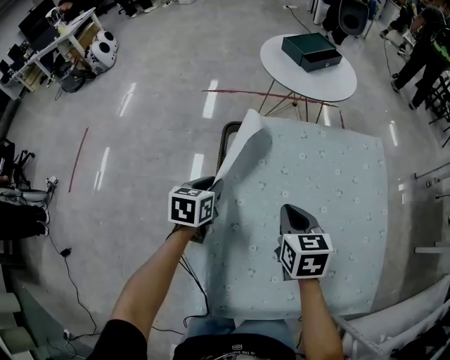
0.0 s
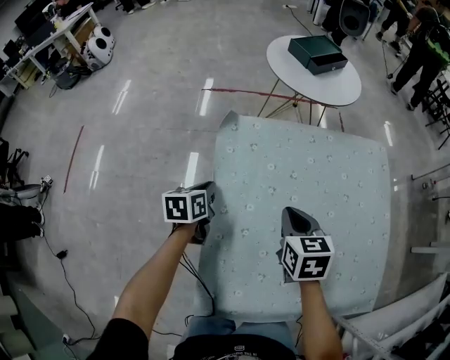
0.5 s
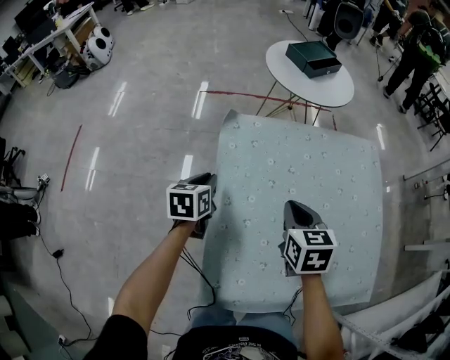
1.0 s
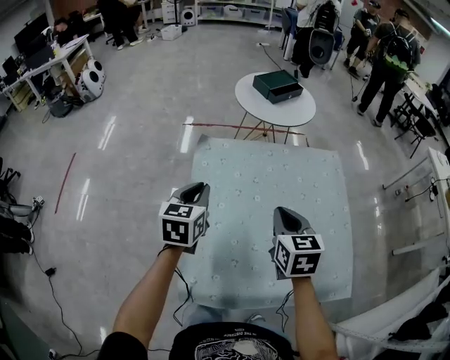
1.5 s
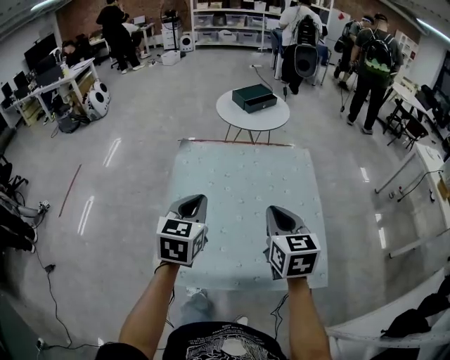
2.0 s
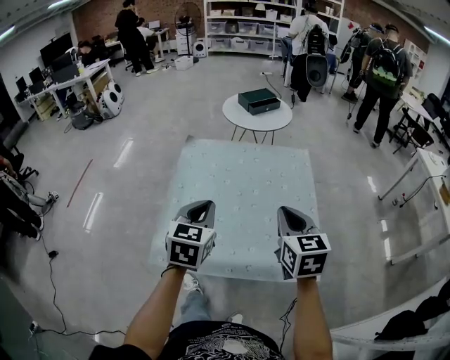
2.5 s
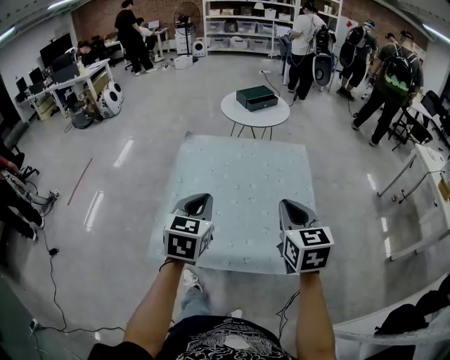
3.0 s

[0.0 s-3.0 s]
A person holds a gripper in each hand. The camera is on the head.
0.0 to 1.5 s: The right gripper travels upward and backward by some 15 cm. Meanwhile the left gripper travels upward by some 15 cm.
1.5 to 3.0 s: The right gripper goes roughly 30 cm backward, to the right and upward. The left gripper is displaced backward and to the right by approximately 30 cm.

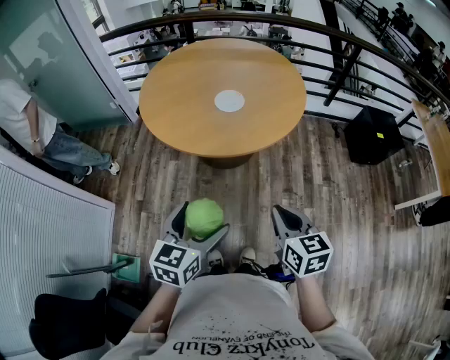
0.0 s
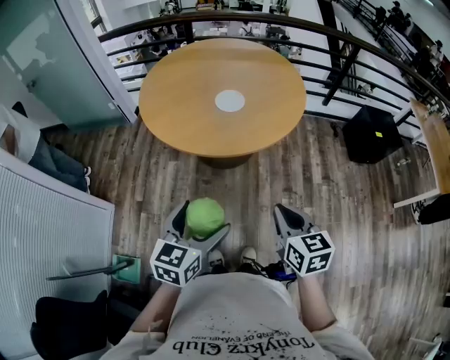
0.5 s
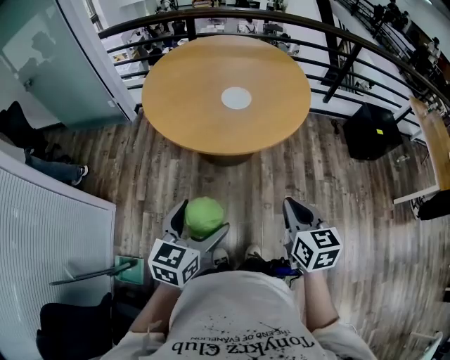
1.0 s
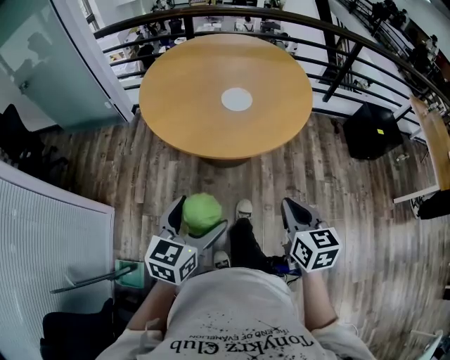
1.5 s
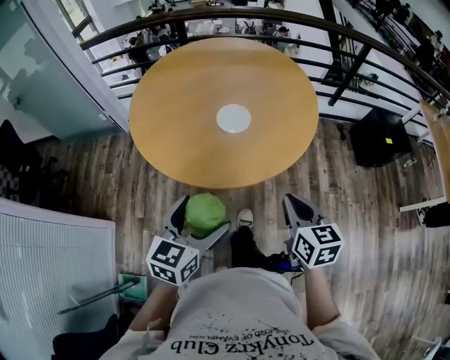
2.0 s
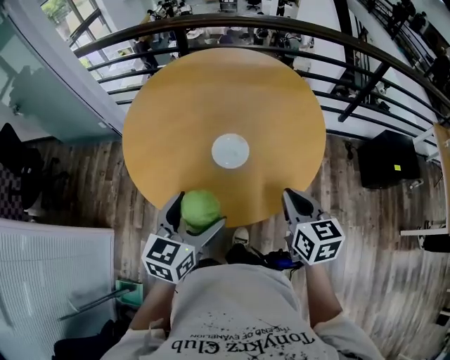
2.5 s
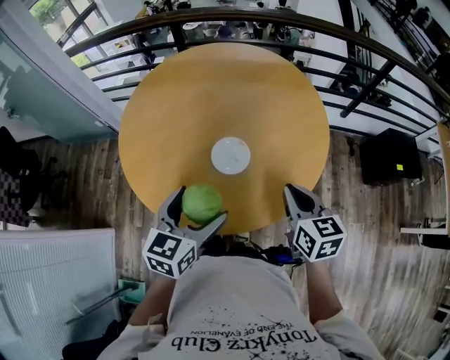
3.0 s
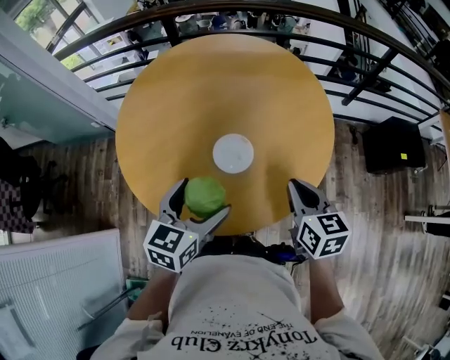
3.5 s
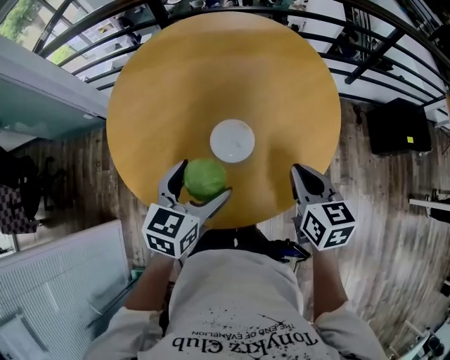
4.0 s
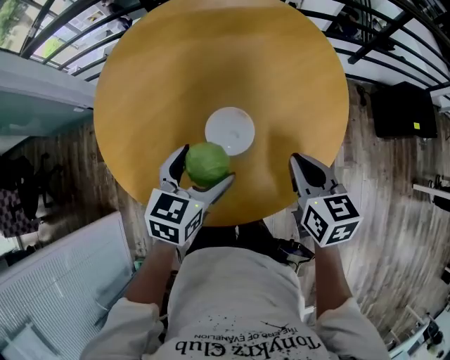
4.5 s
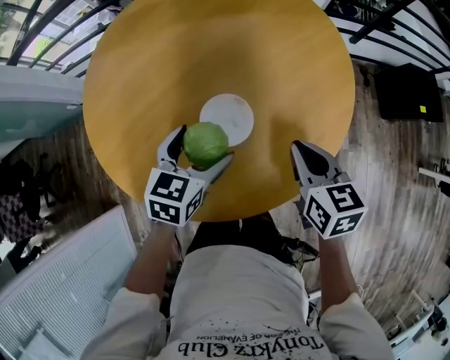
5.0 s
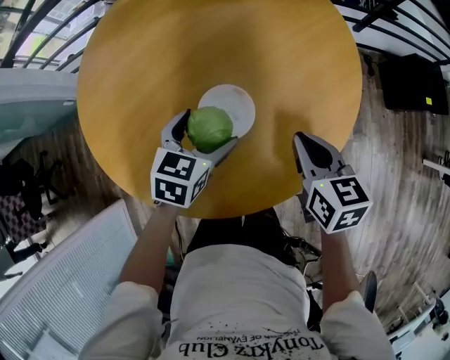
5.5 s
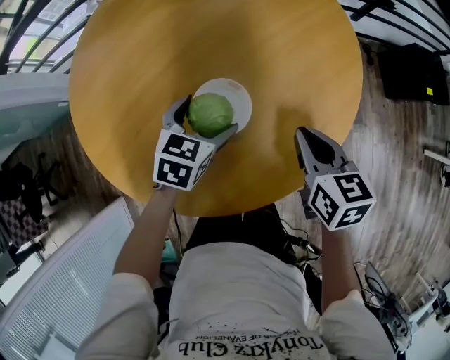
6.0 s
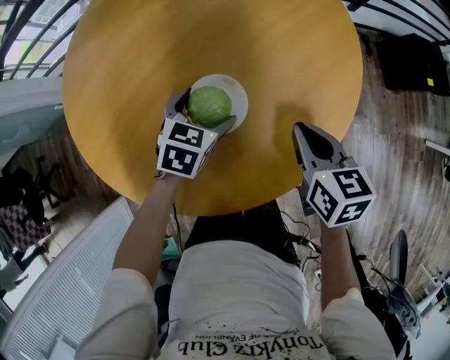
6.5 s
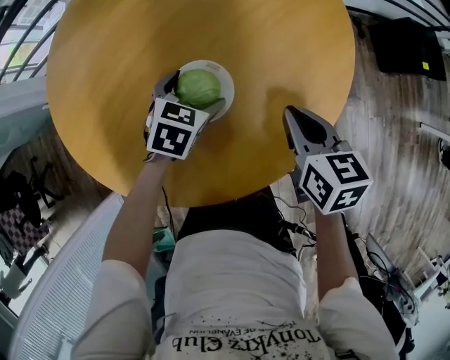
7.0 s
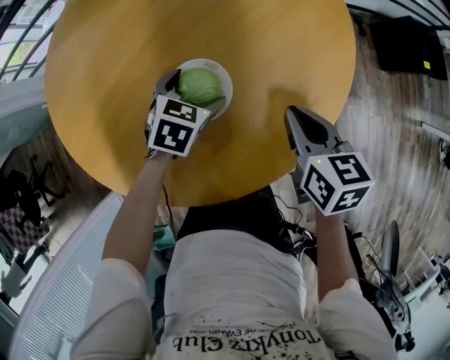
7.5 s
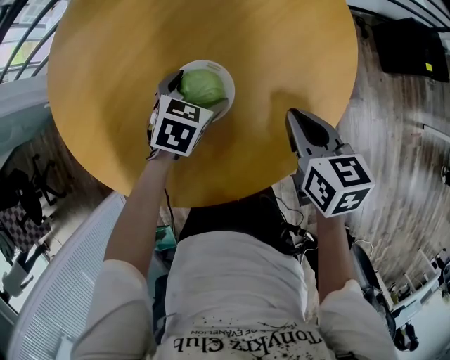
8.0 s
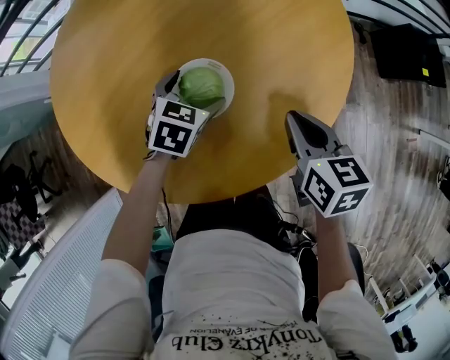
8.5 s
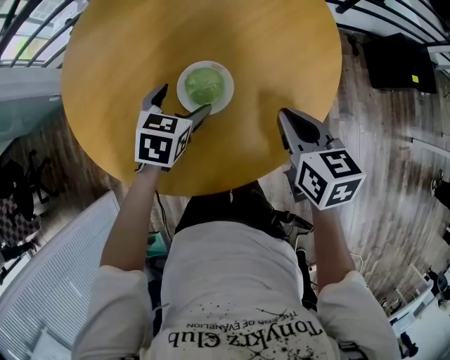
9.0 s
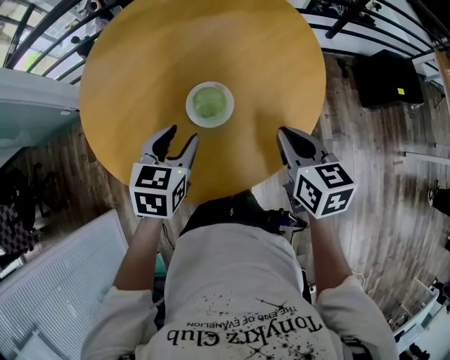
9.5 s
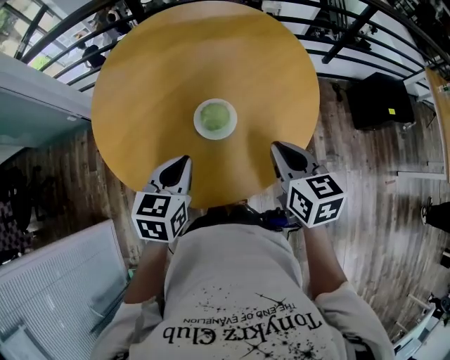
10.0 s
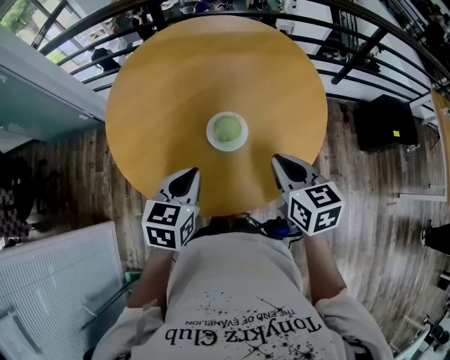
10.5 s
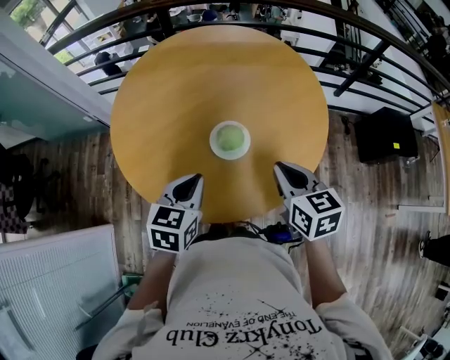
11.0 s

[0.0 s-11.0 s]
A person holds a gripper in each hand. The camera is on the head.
0.0 to 2.0 s: Both grippers travel together forward, some 15 cm.
2.0 to 3.5 s: Both grippers move forward, approximately 25 cm.
3.5 to 5.5 s: The right gripper heads downward and forward, covering roughly 15 cm, while the left gripper travels downward and forward by about 25 cm.
5.5 to 7.5 s: The left gripper goes some 10 cm downward. Meanwhile the right gripper shifts by some 5 cm.
7.5 to 9.0 s: The grippers both shift upward by roughly 5 cm.
9.0 to 11.0 s: The right gripper shifts about 15 cm upward and backward. Meanwhile the left gripper is displaced upward and backward by roughly 25 cm, swivels approximately 20 degrees, and closes its fingers.

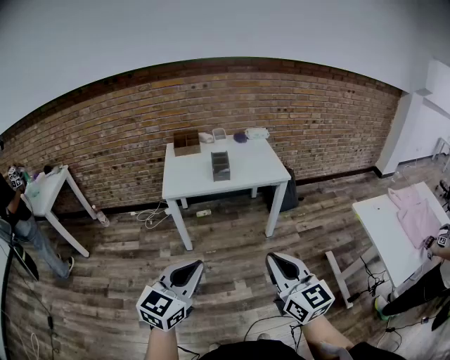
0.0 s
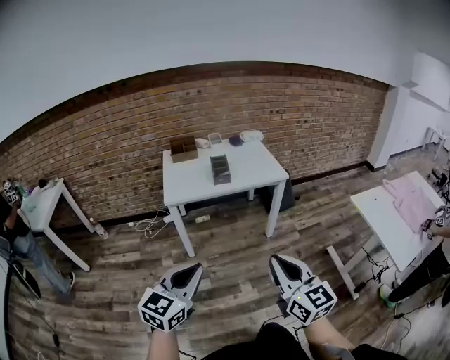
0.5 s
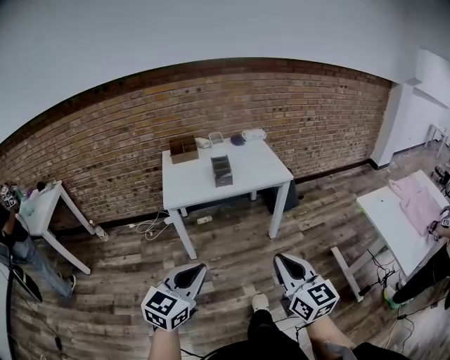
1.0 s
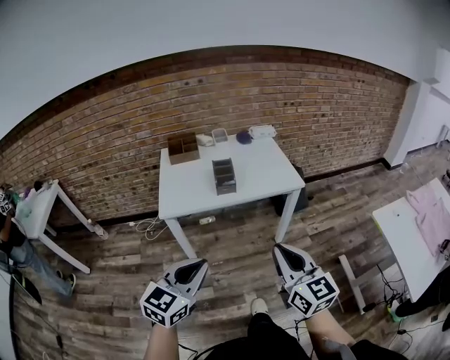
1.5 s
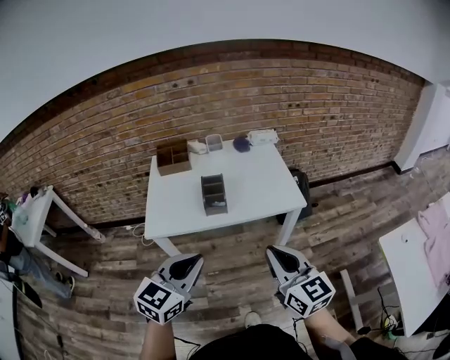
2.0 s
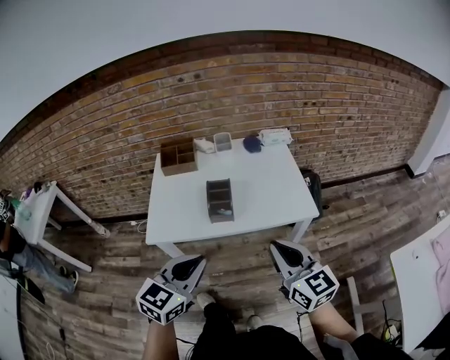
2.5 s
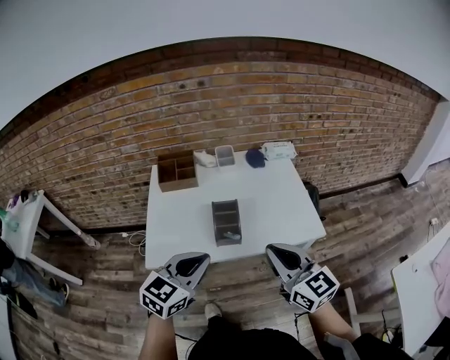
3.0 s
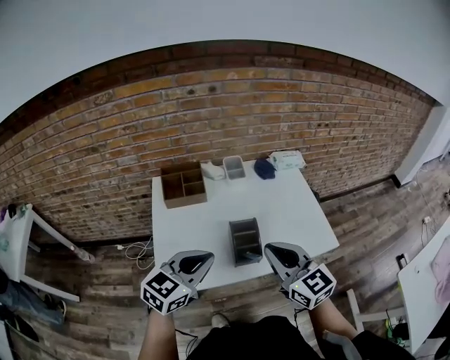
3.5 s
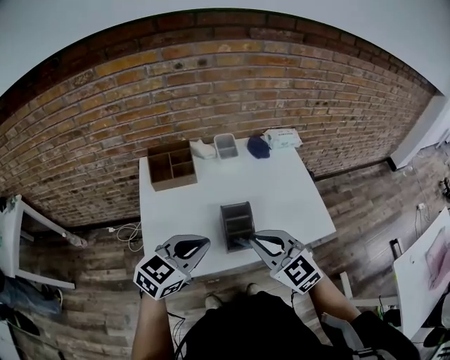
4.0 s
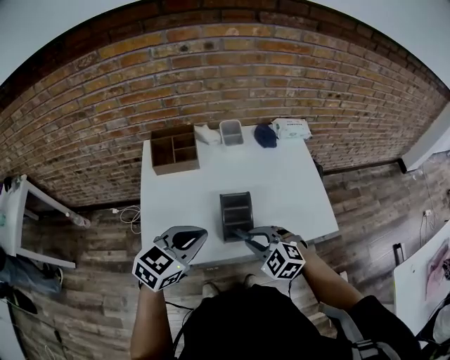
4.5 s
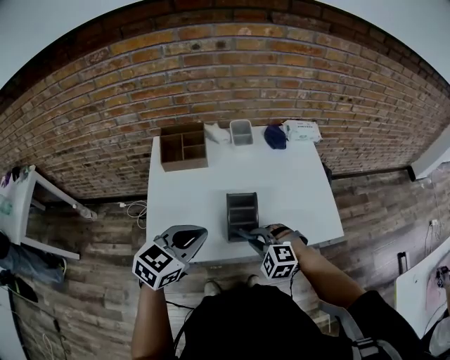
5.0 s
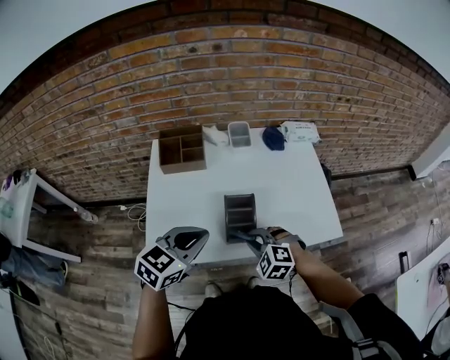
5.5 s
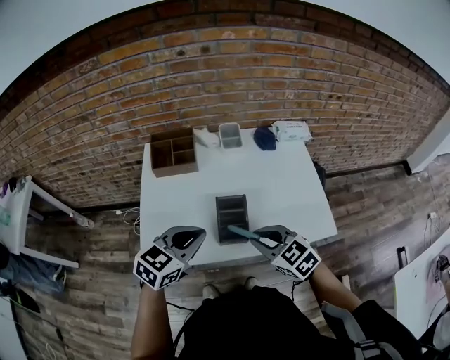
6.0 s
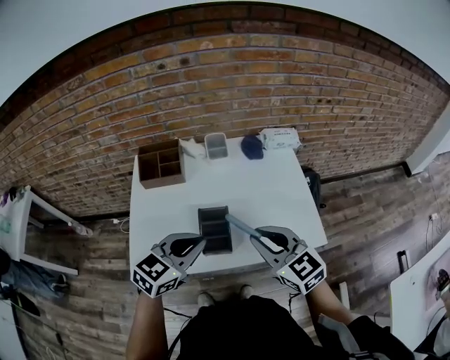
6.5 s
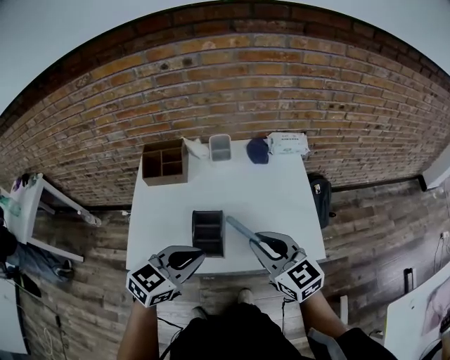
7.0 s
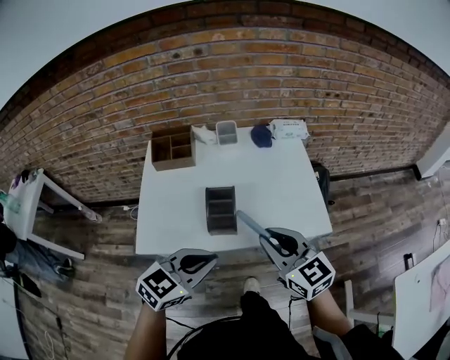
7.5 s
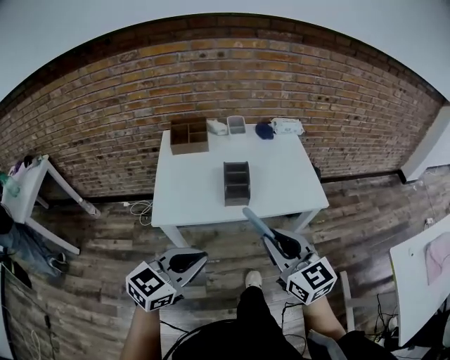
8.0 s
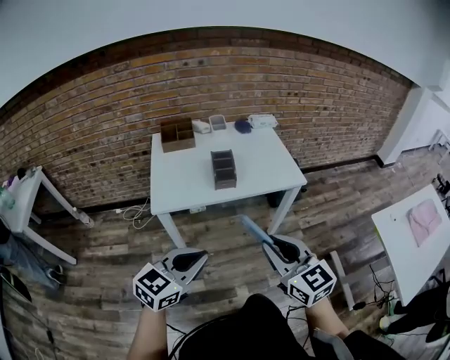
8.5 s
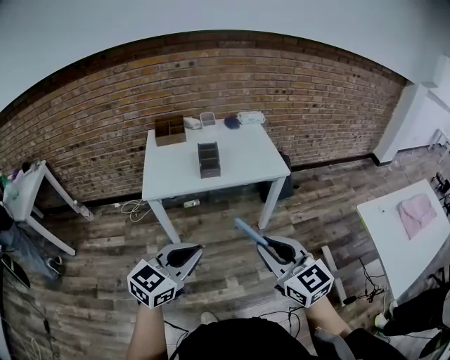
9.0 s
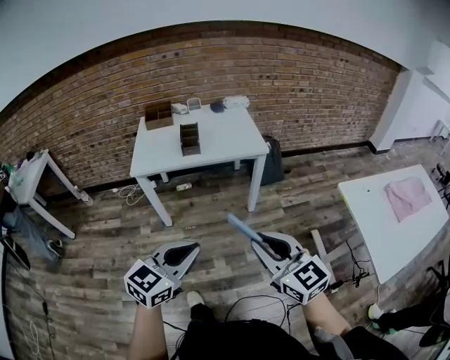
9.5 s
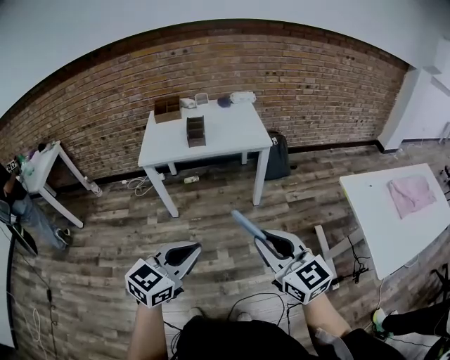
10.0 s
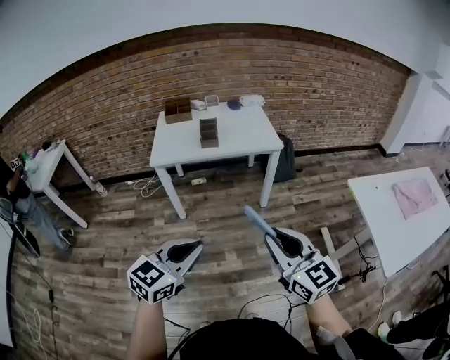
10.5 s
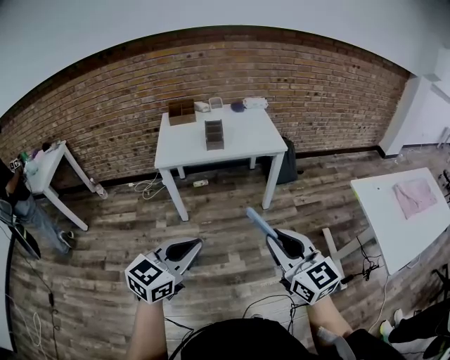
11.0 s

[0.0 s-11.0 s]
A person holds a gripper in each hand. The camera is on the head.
0.0 to 2.0 s: The two grippers go roughly 30 cm forward.
2.0 to 3.5 s: The grippers both shift forward and to the left by about 30 cm.
3.5 to 5.5 s: The right gripper shifts roughly 20 cm downward, and tips its fingers downward by roughly 40 degrees. The left gripper ends up about 5 cm from where it was.
5.5 to 7.5 s: The right gripper moves upward and to the right, approximately 20 cm, and tips its fingers upward by some 40 degrees. The left gripper heads to the right and backward, covering approximately 15 cm.
7.5 to 9.0 s: The two grippers go approximately 35 cm backward.
9.0 to 11.0 s: Both grippers travel together backward, some 15 cm.

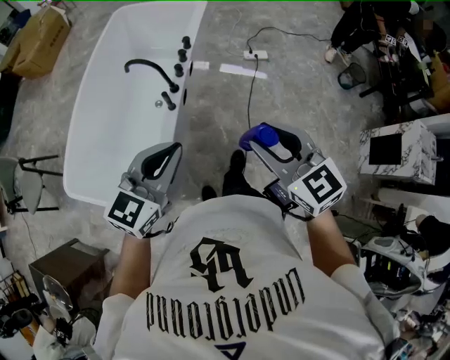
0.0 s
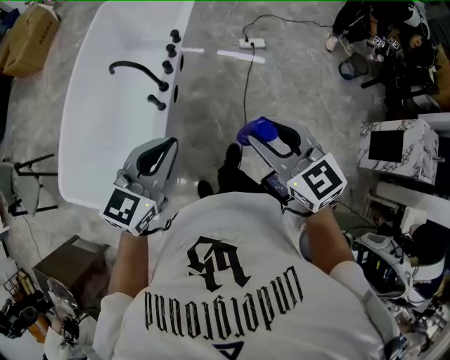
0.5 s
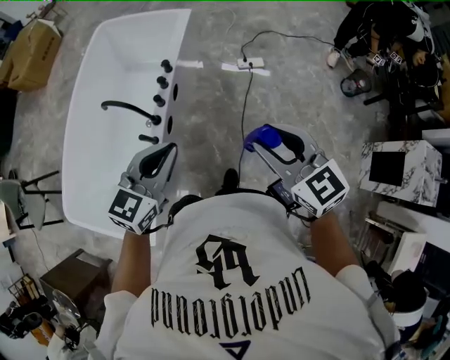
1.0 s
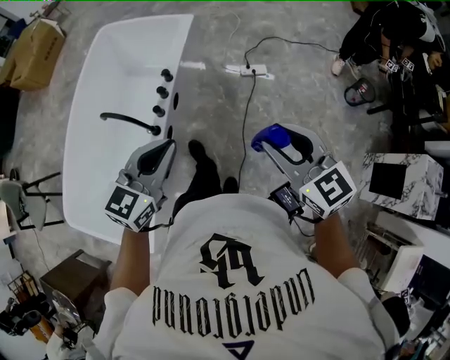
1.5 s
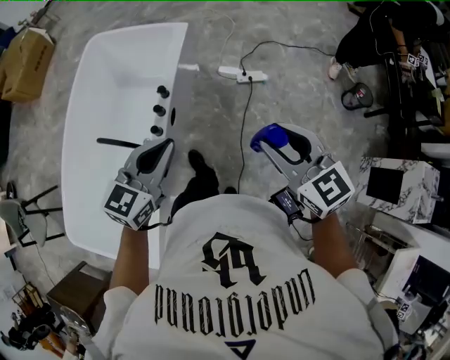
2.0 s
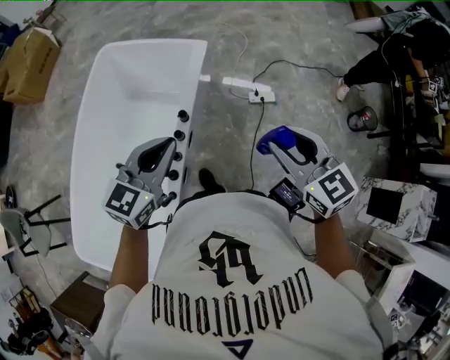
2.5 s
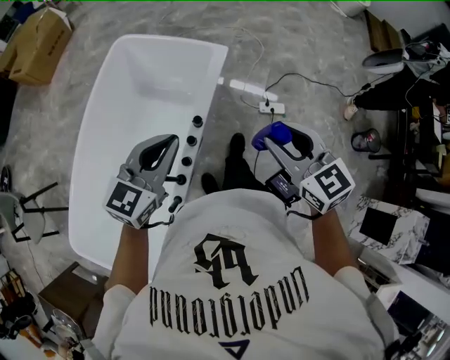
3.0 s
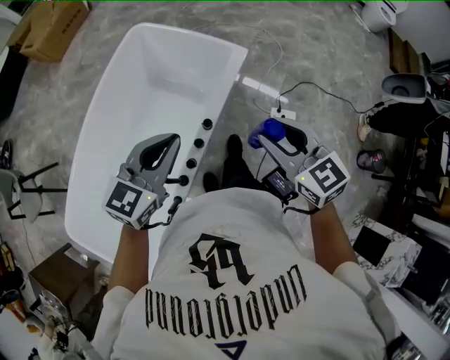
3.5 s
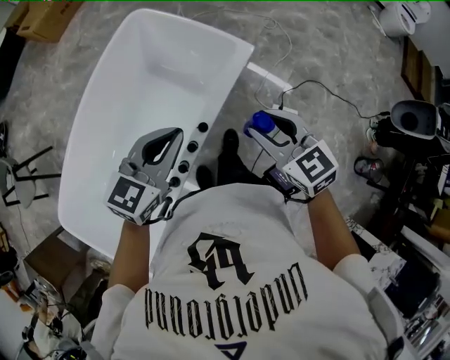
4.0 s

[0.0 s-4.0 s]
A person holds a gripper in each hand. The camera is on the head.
0.0 to 2.0 s: The left gripper goes approximately 40 cm forward, while the right gripper heads forward and to the right, covering approximately 40 cm.
2.0 to 4.0 s: Both grippers move forward and to the left, approximately 35 cm. The right gripper swivels approximately 30 degrees.
